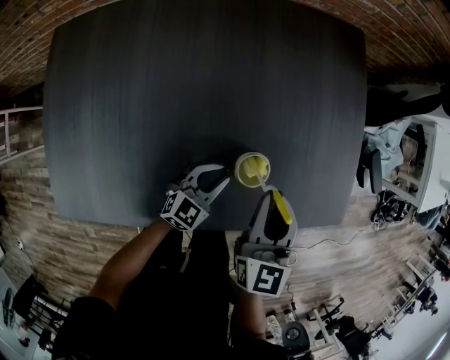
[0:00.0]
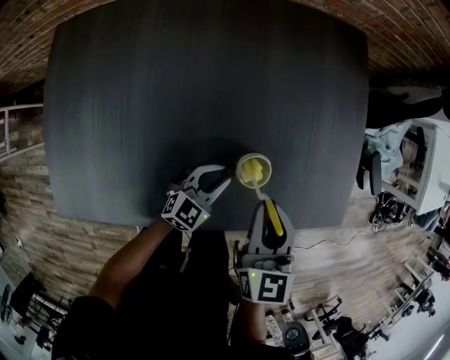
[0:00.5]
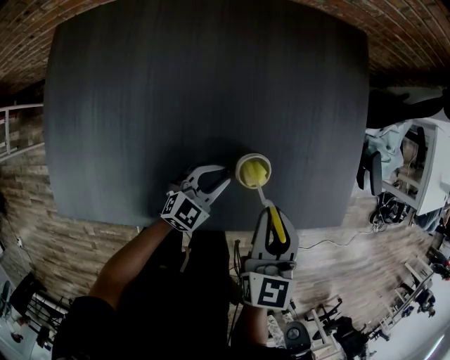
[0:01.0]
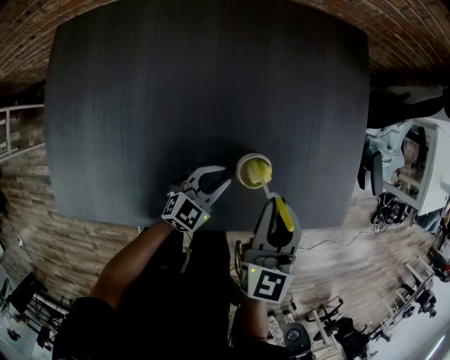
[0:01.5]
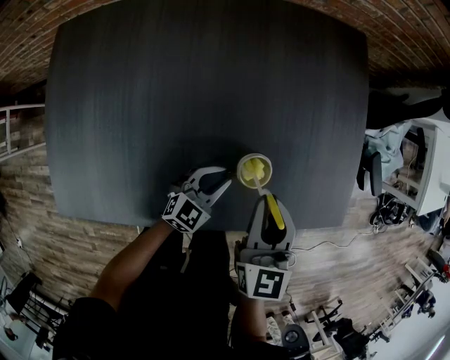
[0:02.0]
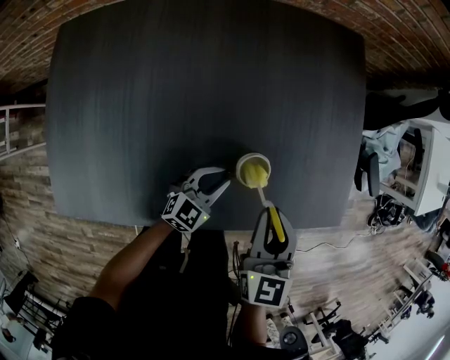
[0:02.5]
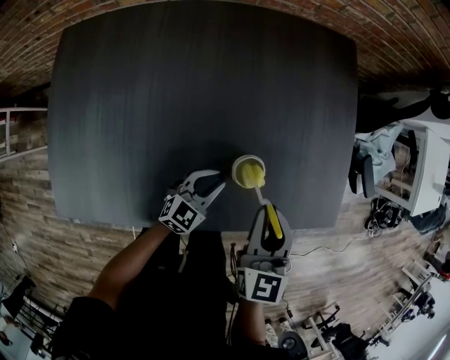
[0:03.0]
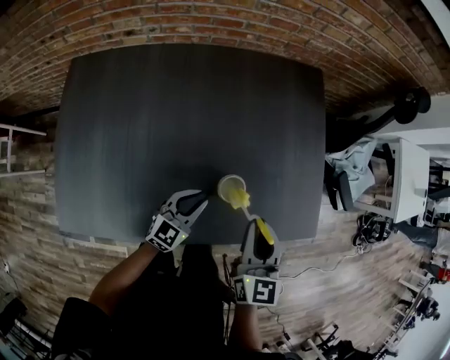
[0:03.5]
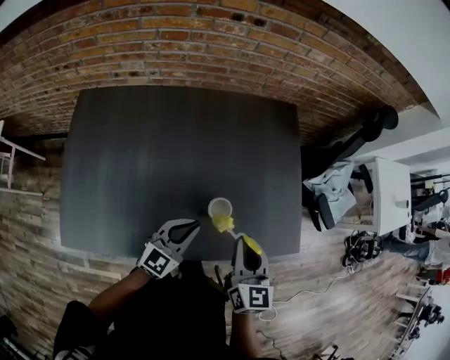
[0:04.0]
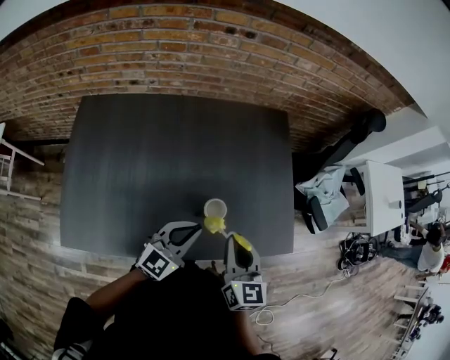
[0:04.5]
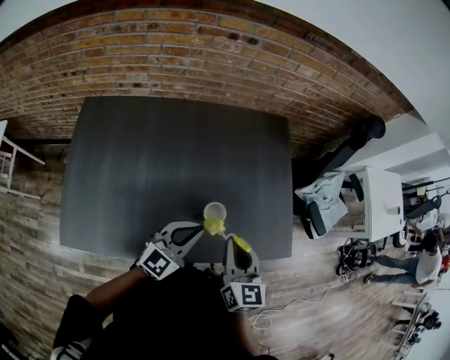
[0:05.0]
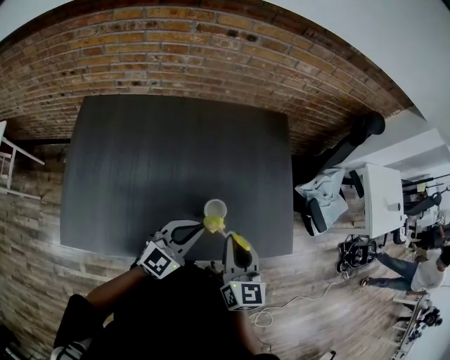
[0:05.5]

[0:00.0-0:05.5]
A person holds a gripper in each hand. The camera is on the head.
0:00.0 to 0:02.0: The grippers make only small movements.
0:02.0 to 0:03.5: The left gripper is displaced upward by roughly 10 cm, while the right gripper is displaced upward by roughly 5 cm.
0:03.5 to 0:05.5: The right gripper heads upward, covering some 10 cm; the left gripper moves upward, some 20 cm.

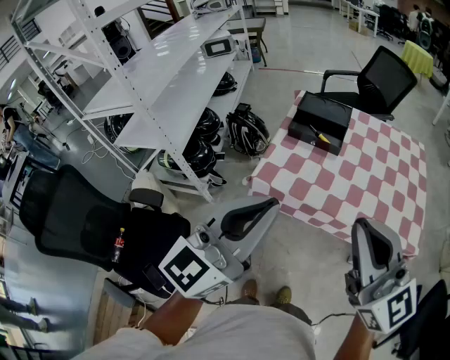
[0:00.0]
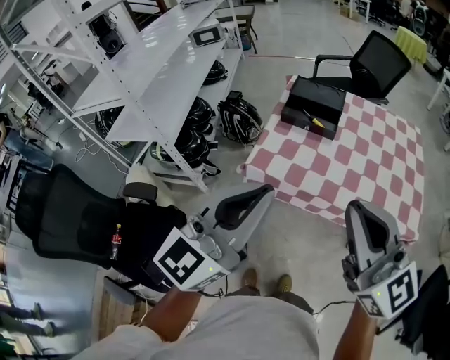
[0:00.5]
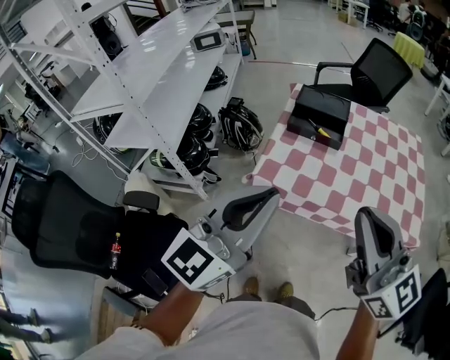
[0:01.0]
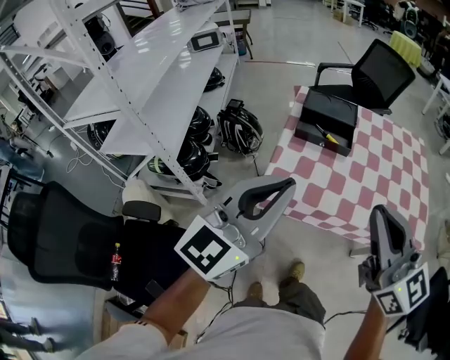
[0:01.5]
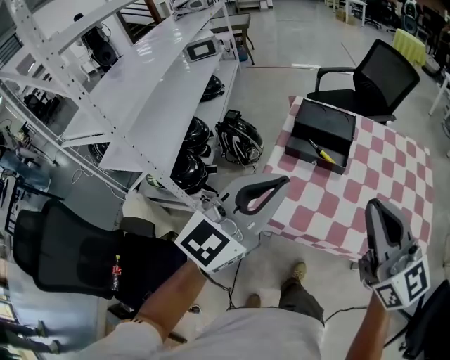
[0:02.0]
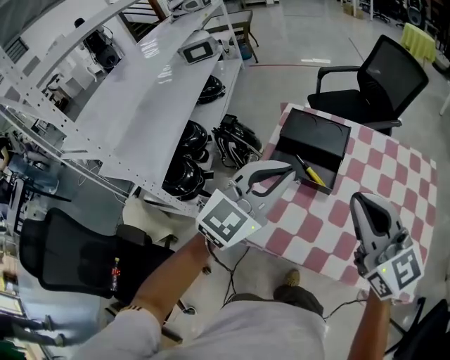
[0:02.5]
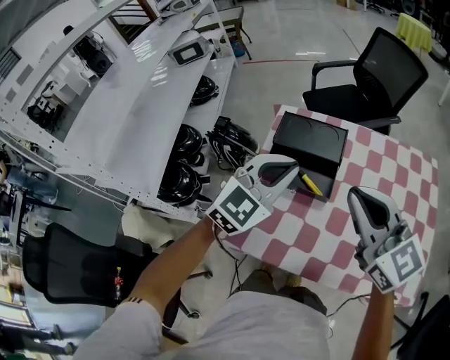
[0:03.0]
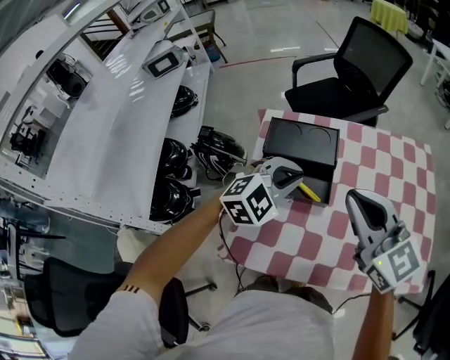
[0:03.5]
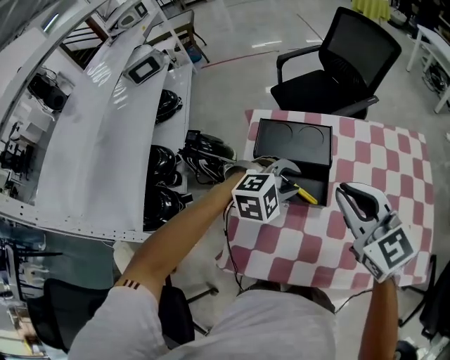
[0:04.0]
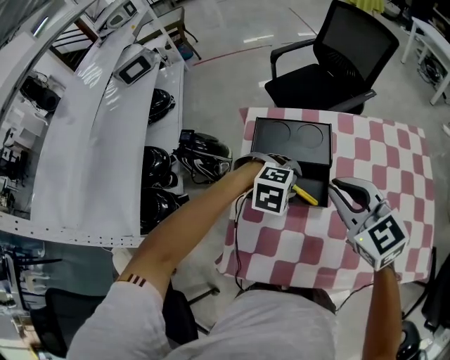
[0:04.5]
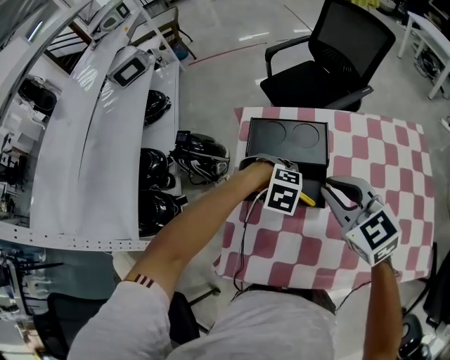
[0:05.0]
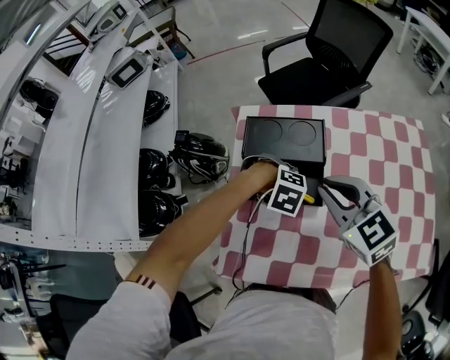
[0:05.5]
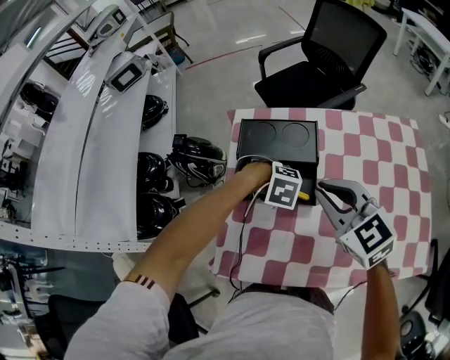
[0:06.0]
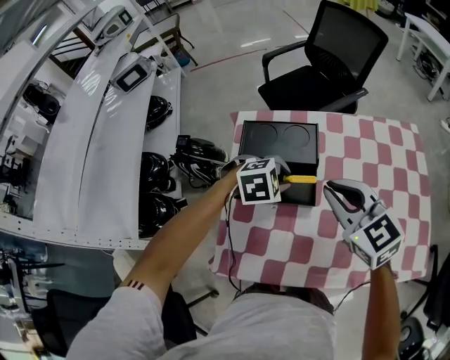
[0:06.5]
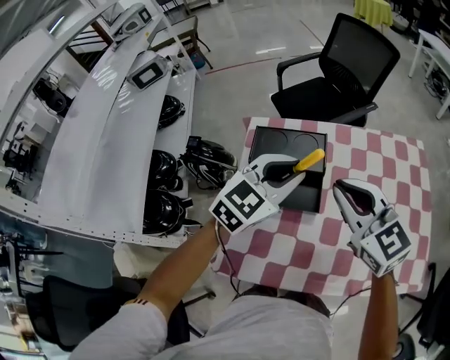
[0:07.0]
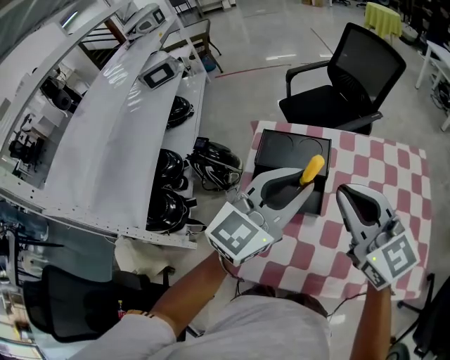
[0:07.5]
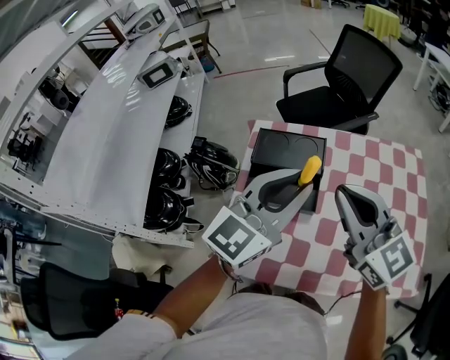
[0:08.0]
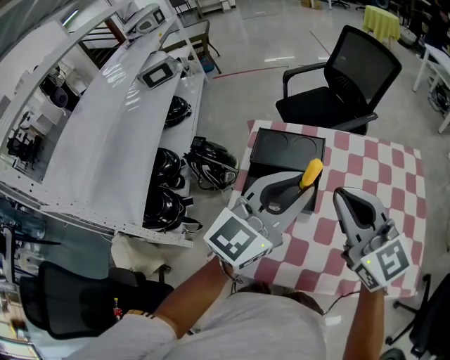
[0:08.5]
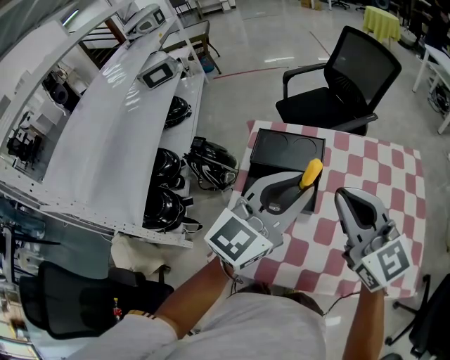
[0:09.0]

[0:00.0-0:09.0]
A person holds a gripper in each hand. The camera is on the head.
0:00.0 to 0:02.0: Both grippers move forward, approximately 15 cm.
0:02.0 to 0:04.5: Both grippers move forward and downward, some 35 cm. The right gripper swivels approximately 30 degrees. The left gripper tilts its fingers some 70 degrees downward, and opens.
0:04.5 to 0:07.0: The left gripper moves upward, some 20 cm, tilts its fingers some 50 degrees upward, and closes up, while the right gripper moves about 5 cm.
0:07.0 to 0:09.0: The right gripper changes place by approximately 5 cm, while the left gripper moves upward and backward, roughly 10 cm, and changes its angle by some 30 degrees.

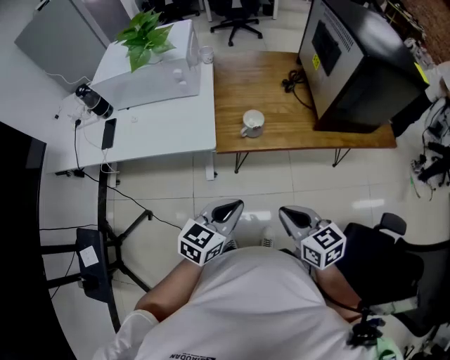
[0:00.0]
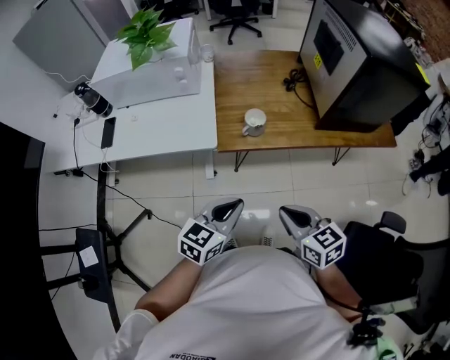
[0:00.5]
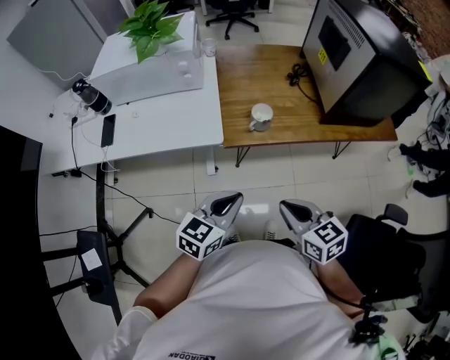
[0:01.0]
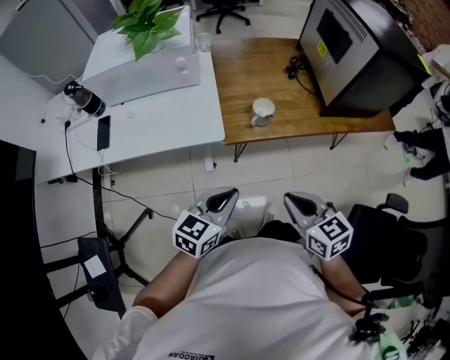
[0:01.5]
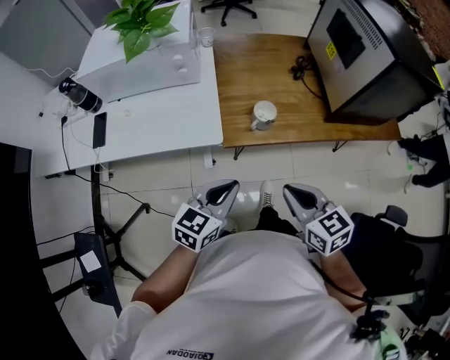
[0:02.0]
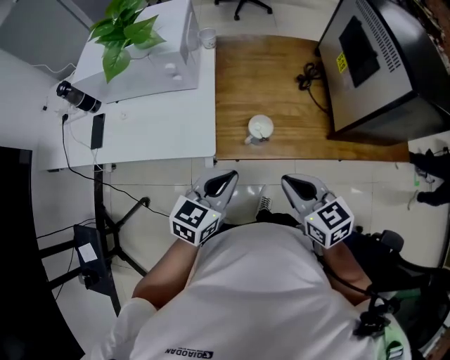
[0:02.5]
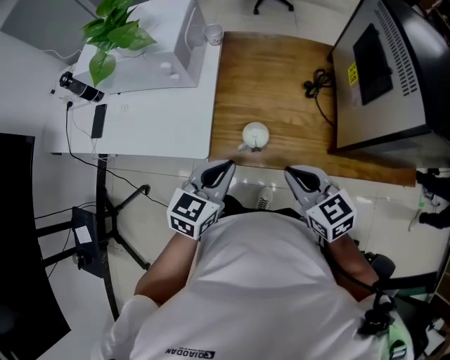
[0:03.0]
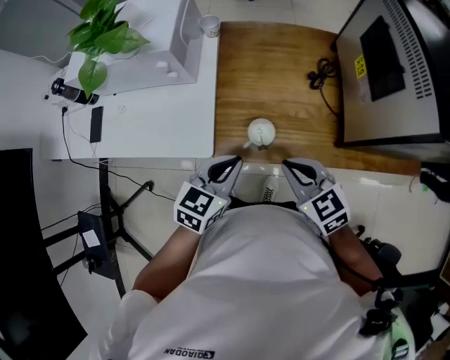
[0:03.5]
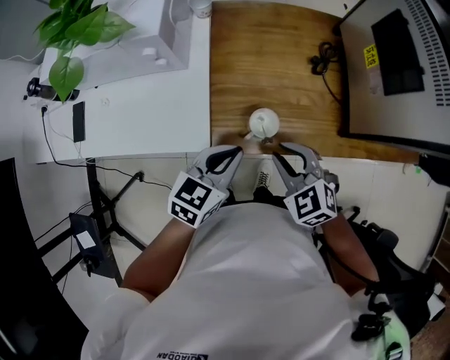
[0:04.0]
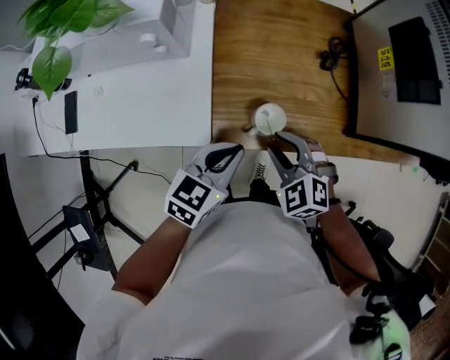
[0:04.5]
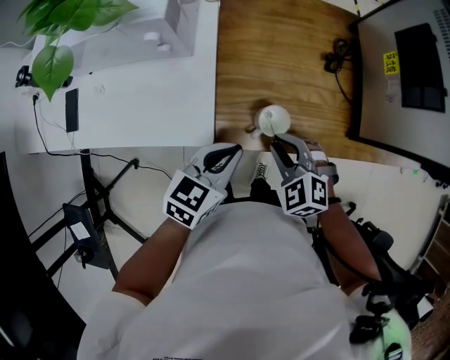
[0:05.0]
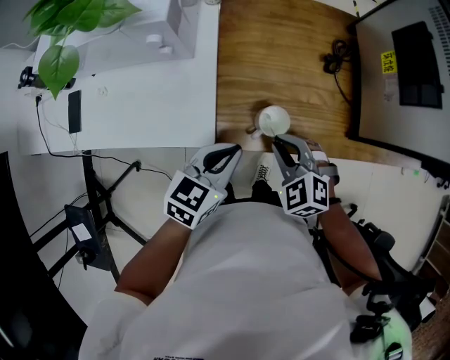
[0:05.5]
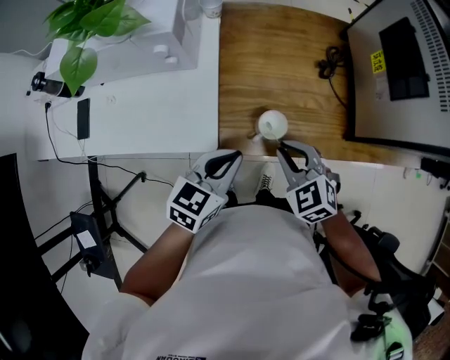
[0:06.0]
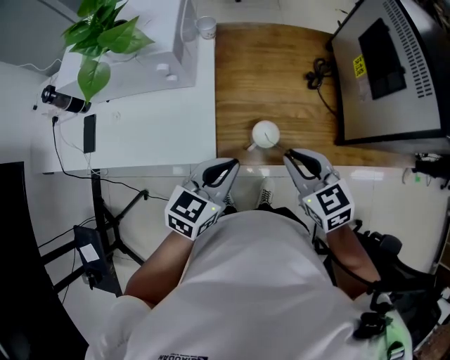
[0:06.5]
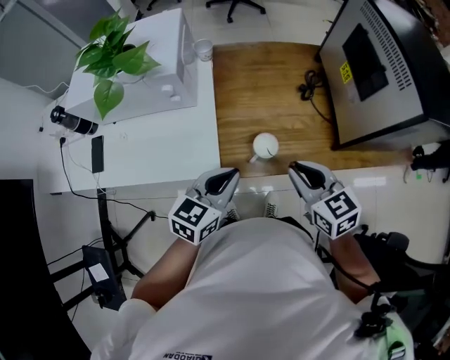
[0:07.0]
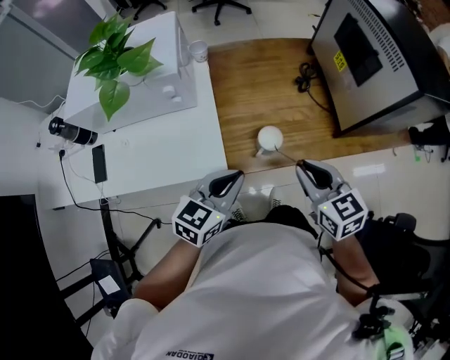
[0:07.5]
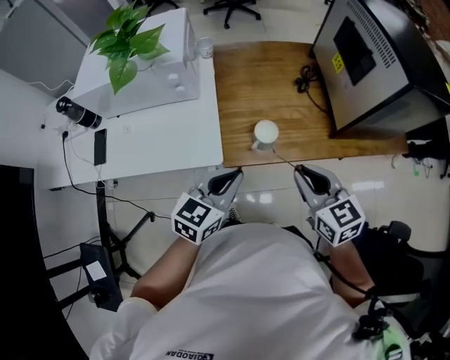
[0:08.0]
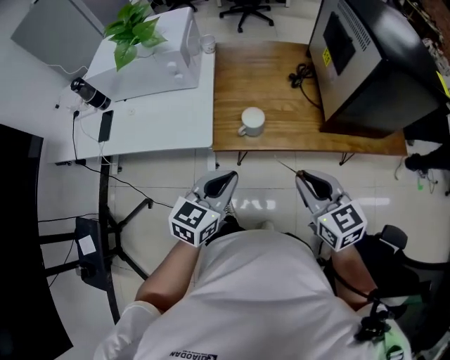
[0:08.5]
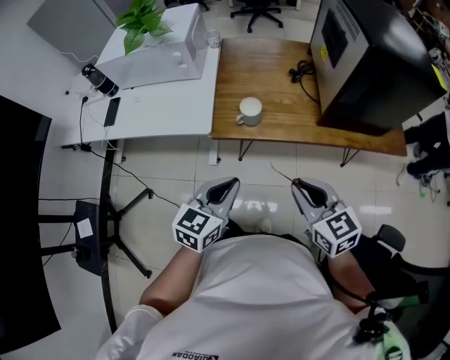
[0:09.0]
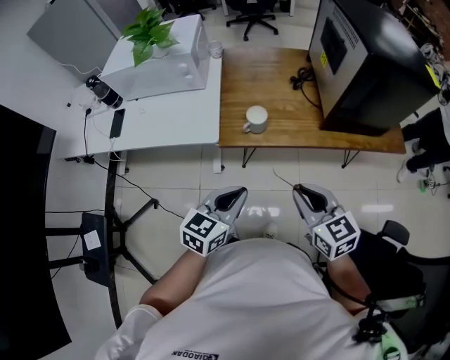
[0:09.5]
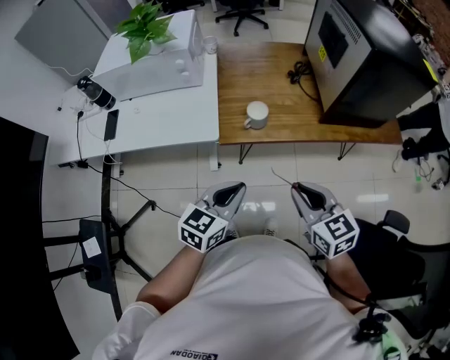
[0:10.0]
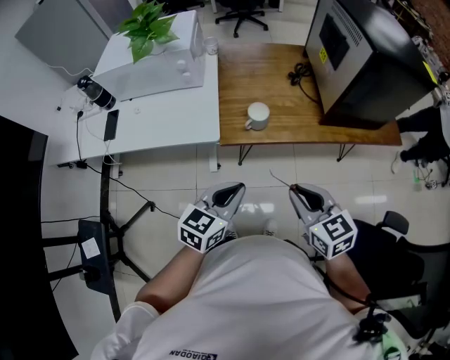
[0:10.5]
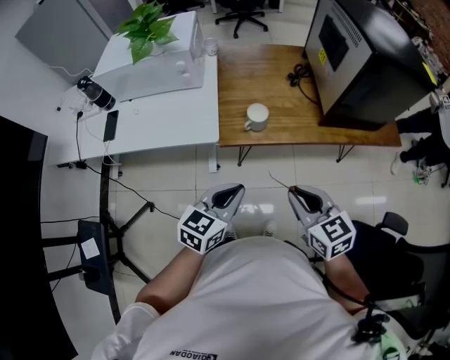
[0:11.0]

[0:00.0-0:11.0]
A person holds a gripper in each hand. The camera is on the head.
0:00.0 to 0:02.0: The grippers both shift forward and to the left by some 10 cm.
0:02.0 to 0:03.5: The right gripper is displaced forward by about 20 cm, and changes its angle by some 20 degrees. Meanwhile the left gripper is displaced forward and to the right by about 20 cm.
0:03.5 to 0:05.5: The left gripper ends up about 5 cm from where it was. Meanwhile the right gripper travels downward and to the left by approximately 10 cm, and swivels some 30 degrees.
0:05.5 to 0:07.5: The left gripper shifts some 5 cm upward, while the right gripper is displaced upward and backward by some 15 cm, and rotates around the line of its fingers by roughly 40 degrees, clockwise from behind.
0:07.5 to 0:09.0: The two grippers go some 20 cm backward and to the right.
0:09.0 to 0:11.0: The right gripper is displaced to the left by about 5 cm.

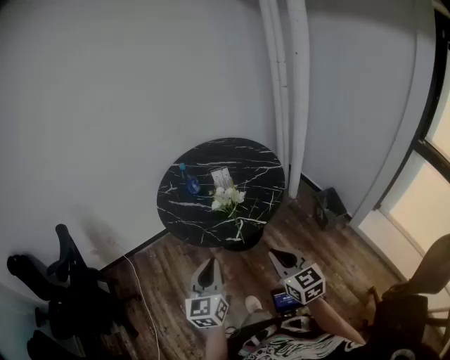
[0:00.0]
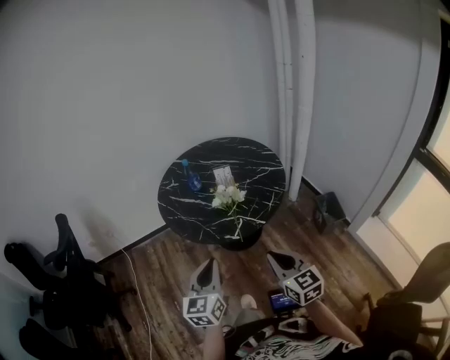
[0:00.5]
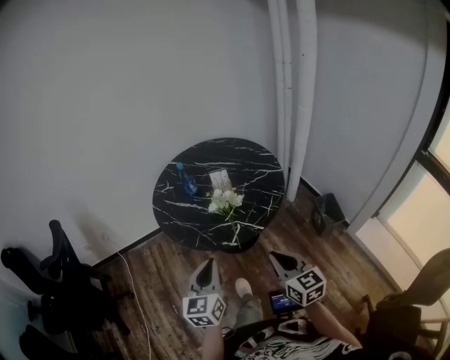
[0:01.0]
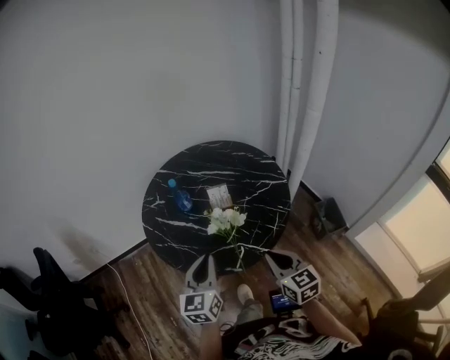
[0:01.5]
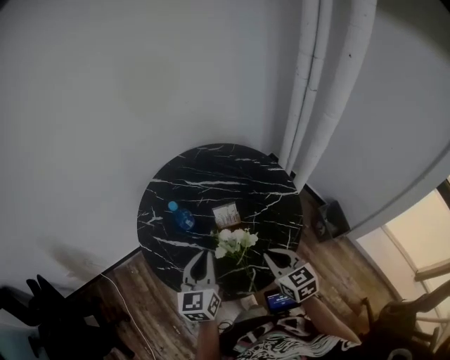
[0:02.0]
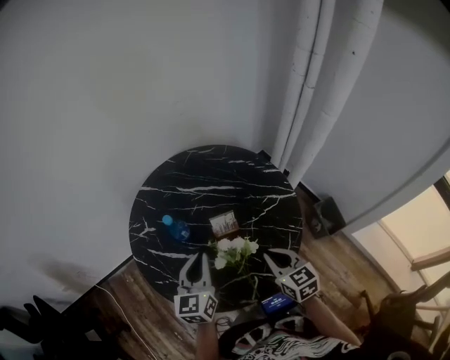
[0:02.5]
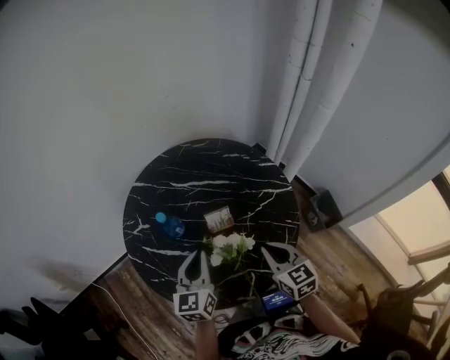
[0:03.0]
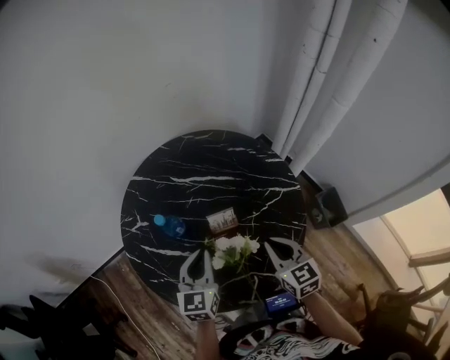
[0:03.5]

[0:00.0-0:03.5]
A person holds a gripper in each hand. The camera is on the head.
0:00.0 to 0:02.0: Both grippers move forward, roughly 35 cm.
0:02.0 to 0:03.5: The left gripper shifts roughly 10 cm forward and downward, while the right gripper moves forward, about 10 cm.
